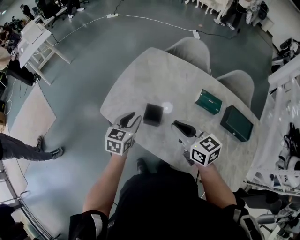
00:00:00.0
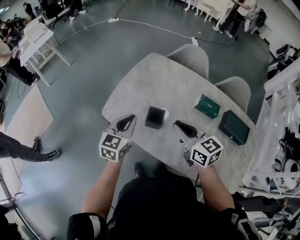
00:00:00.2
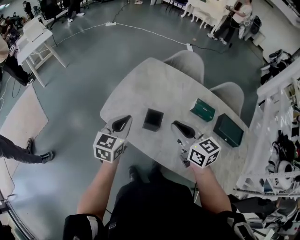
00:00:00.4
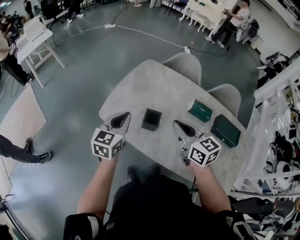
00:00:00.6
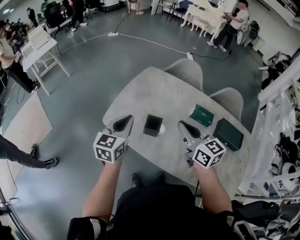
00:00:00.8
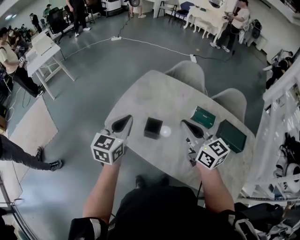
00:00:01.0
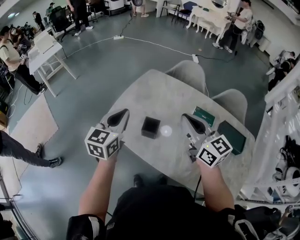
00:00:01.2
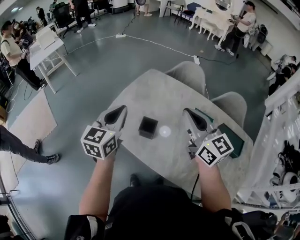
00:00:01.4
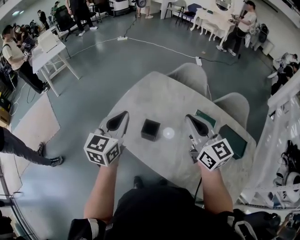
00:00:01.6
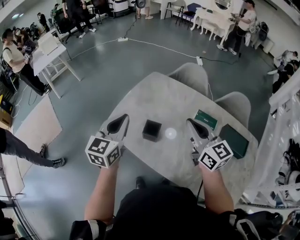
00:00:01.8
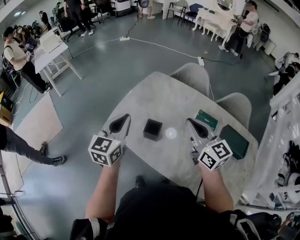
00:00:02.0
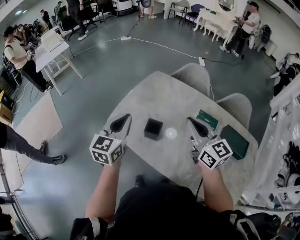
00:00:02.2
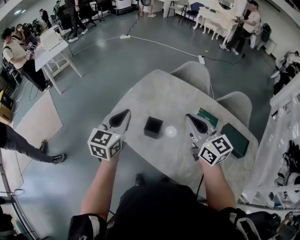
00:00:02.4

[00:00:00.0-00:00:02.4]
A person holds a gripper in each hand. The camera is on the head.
00:00:00.0 to 00:00:01.2: Both grippers travel together upward, some 15 cm. The right gripper rotates some 20 degrees, while the left gripper closes up.
00:00:01.2 to 00:00:02.4: The grippers stay close to where they were, moving slightly.

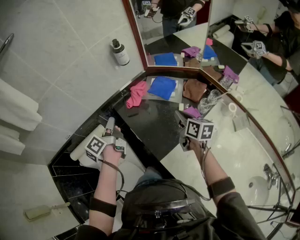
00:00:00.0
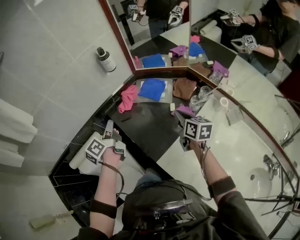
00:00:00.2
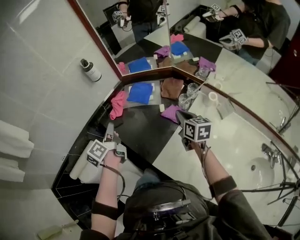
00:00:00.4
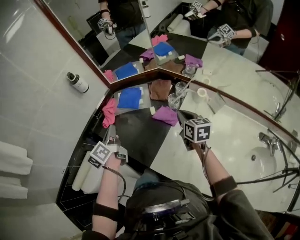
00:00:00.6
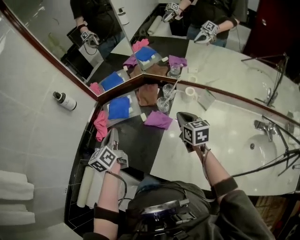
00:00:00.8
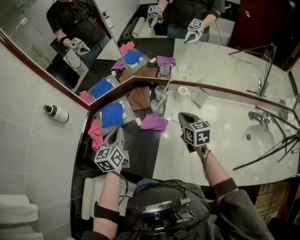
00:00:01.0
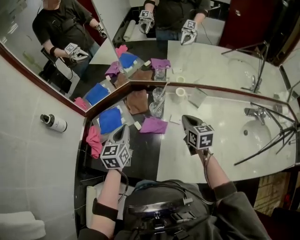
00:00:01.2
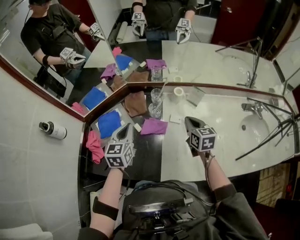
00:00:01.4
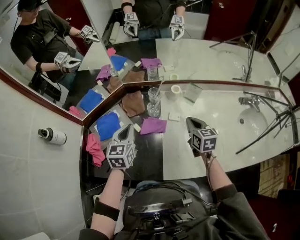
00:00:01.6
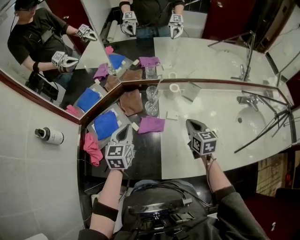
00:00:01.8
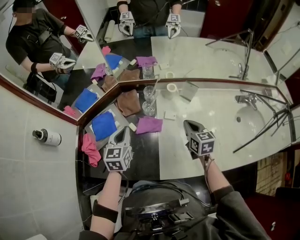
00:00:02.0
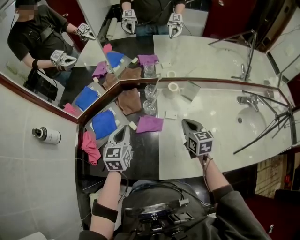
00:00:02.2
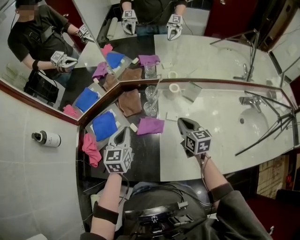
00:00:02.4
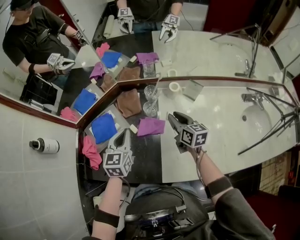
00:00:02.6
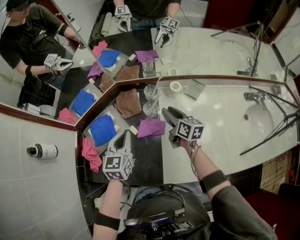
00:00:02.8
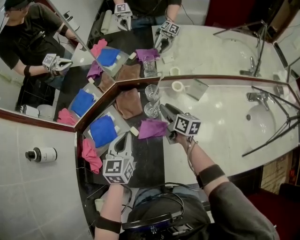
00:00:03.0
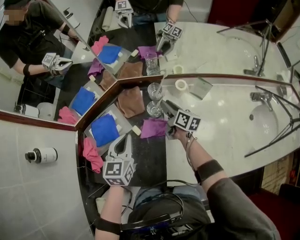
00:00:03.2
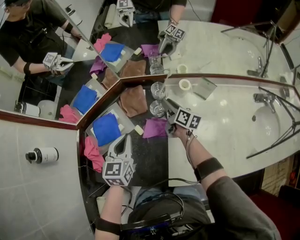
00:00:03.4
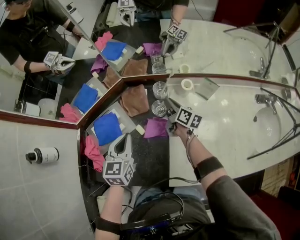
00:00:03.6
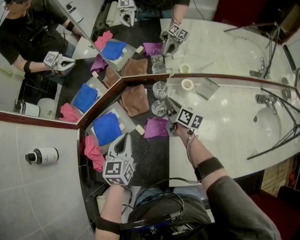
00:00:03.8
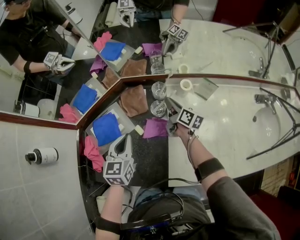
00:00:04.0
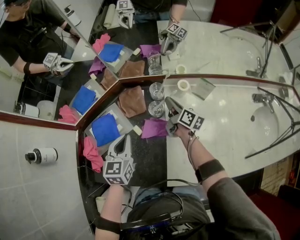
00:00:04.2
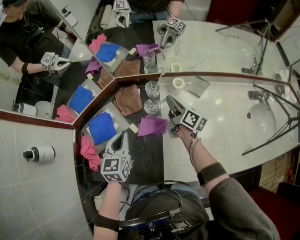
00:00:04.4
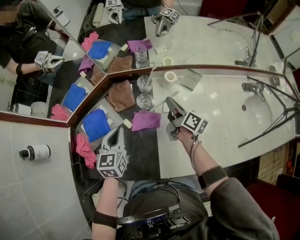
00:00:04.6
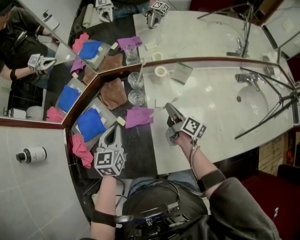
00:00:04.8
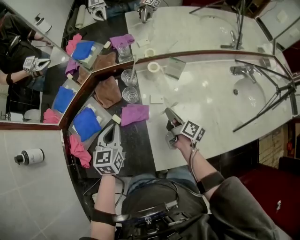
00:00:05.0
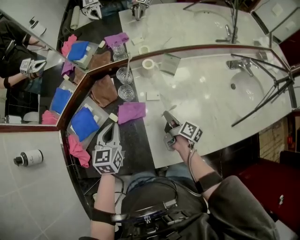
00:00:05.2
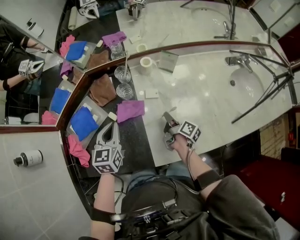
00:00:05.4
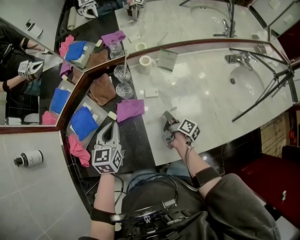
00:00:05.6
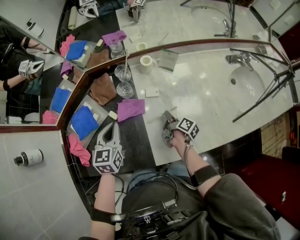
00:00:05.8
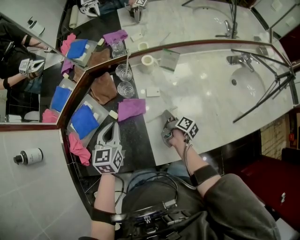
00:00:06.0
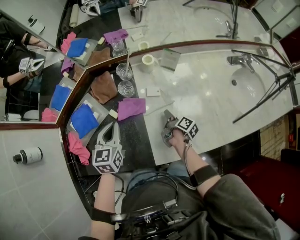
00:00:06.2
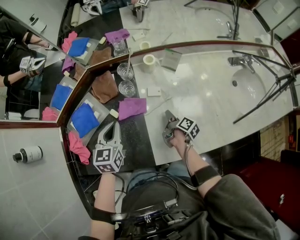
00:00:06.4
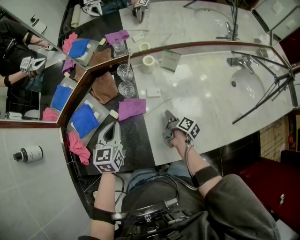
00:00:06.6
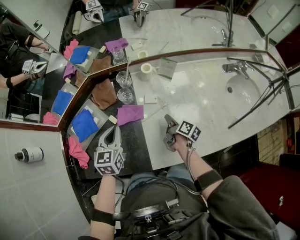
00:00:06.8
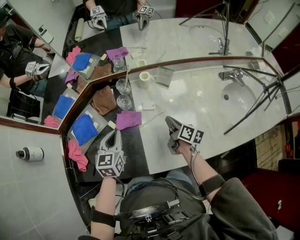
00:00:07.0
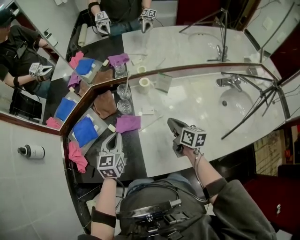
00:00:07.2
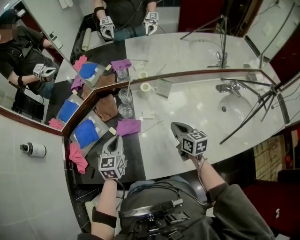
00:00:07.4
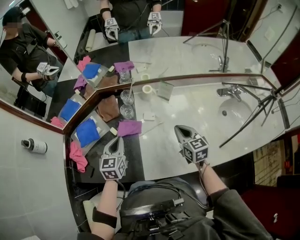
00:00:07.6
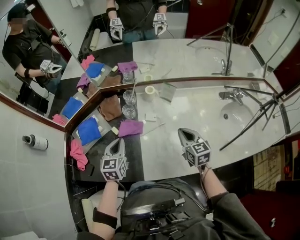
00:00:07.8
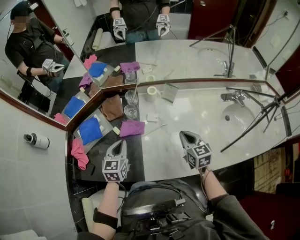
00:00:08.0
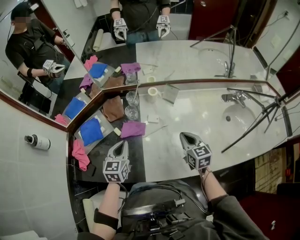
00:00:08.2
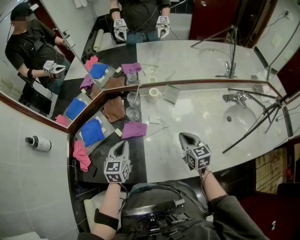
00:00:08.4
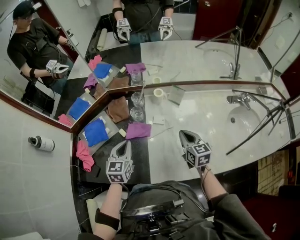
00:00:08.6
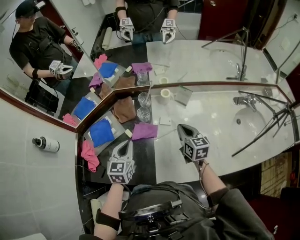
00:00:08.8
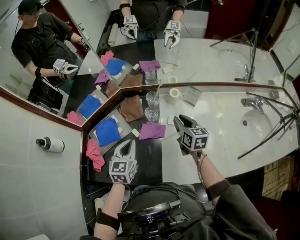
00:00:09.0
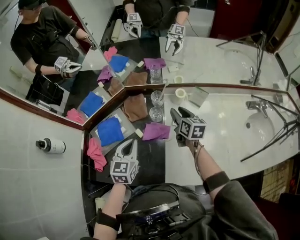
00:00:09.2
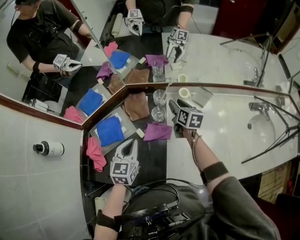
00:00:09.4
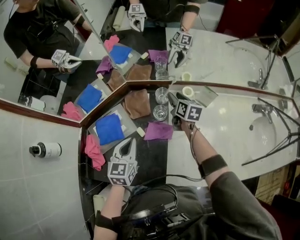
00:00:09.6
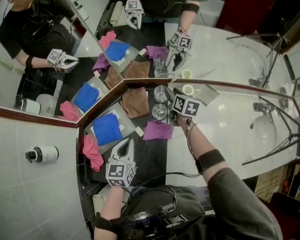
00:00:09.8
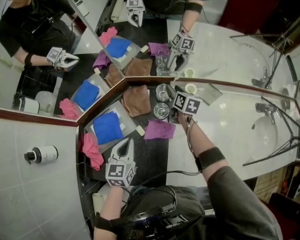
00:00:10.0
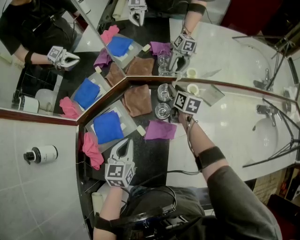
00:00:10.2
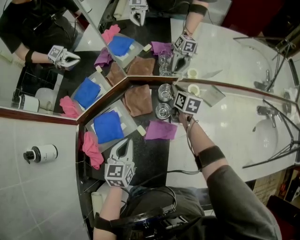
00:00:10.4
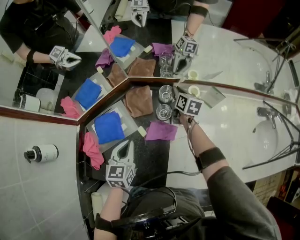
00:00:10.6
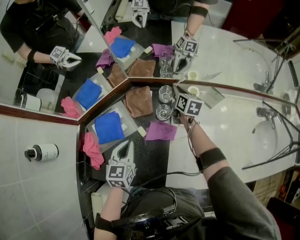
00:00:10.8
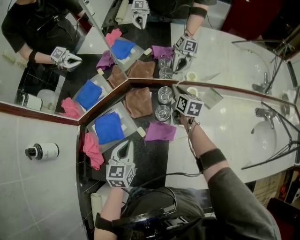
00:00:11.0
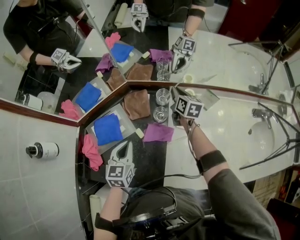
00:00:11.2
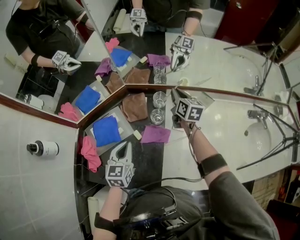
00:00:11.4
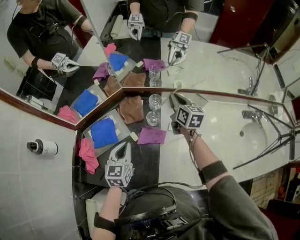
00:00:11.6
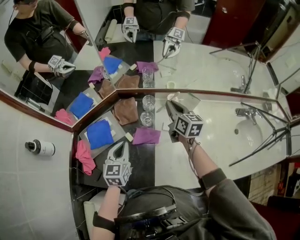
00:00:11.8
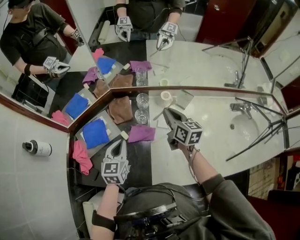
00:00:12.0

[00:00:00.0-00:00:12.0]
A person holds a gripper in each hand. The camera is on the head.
00:00:00.0 to 00:00:01.6: The left gripper changes place by some 35 cm, and changes its angle by approximately 90 degrees. Meanwhile the right gripper changes place by approximately 25 cm, and turns by approximately 50 degrees.
00:00:01.6 to 00:00:03.0: The right gripper travels forward, to the left and downward by about 20 cm, turns by some 30 degrees, and opens.
00:00:03.0 to 00:00:04.4: The right gripper closes its fingers.
00:00:04.4 to 00:00:06.0: The right gripper is displaced backward, downward and to the right by approximately 25 cm, and changes its angle by about 40 degrees; the left gripper goes some 5 cm to the right.
00:00:06.0 to 00:00:07.6: The right gripper moves upward, approximately 20 cm, rolls counterclockwise, seen from behind, by approximately 80 degrees, and closes its fingers. The left gripper shifts by approximately 5 cm.
00:00:07.6 to 00:00:09.0: The right gripper heads forward and to the left, covering about 15 cm, and opens up. Meanwhile the left gripper moves to the left, about 5 cm.
00:00:09.0 to 00:00:10.4: The left gripper shifts some 10 cm to the left and downward. The right gripper travels forward and downward by some 25 cm, and opens and closes again.
00:00:10.4 to 00:00:12.0: The right gripper heads backward and upward, covering some 25 cm. The left gripper is displaced to the right by approximately 5 cm.

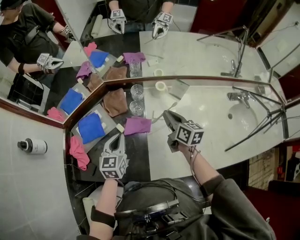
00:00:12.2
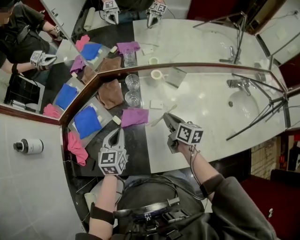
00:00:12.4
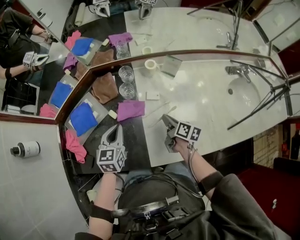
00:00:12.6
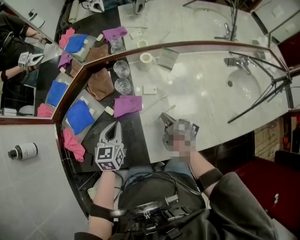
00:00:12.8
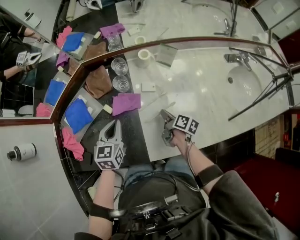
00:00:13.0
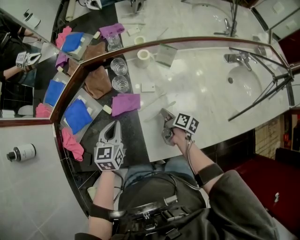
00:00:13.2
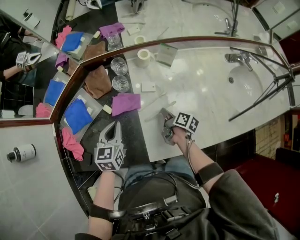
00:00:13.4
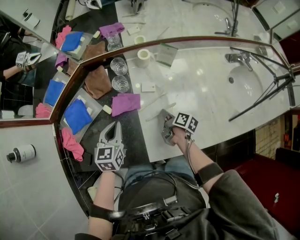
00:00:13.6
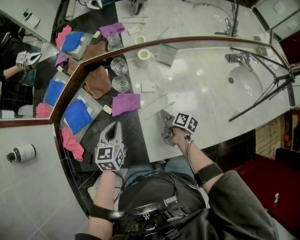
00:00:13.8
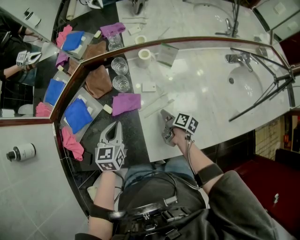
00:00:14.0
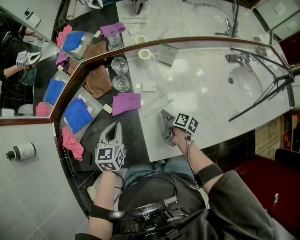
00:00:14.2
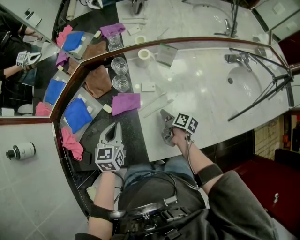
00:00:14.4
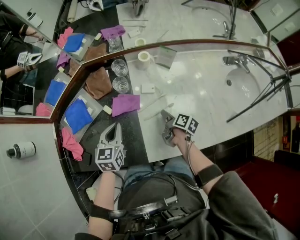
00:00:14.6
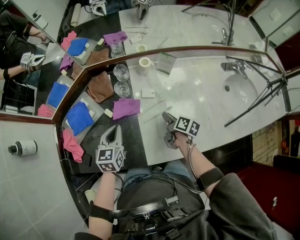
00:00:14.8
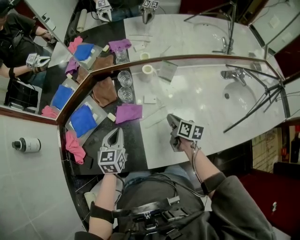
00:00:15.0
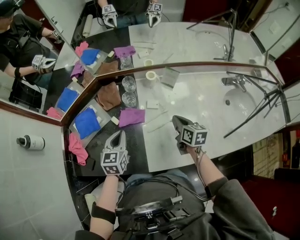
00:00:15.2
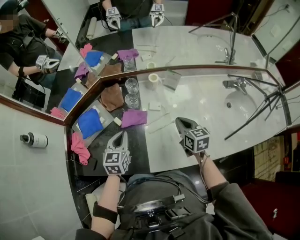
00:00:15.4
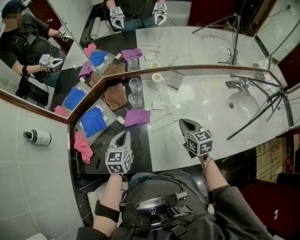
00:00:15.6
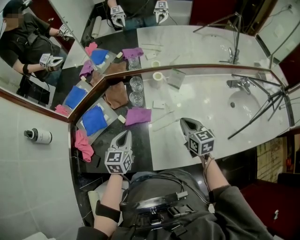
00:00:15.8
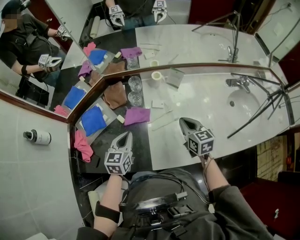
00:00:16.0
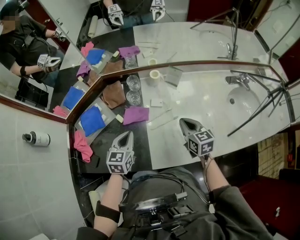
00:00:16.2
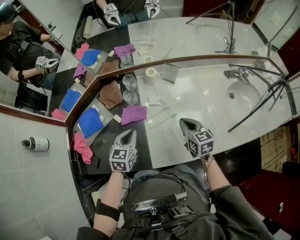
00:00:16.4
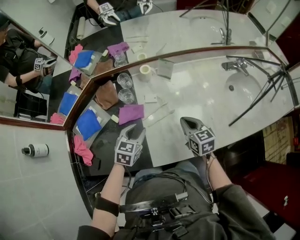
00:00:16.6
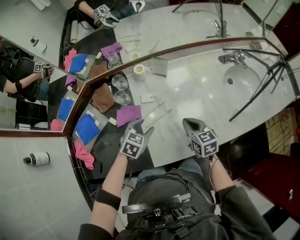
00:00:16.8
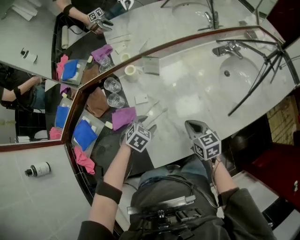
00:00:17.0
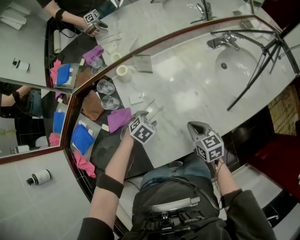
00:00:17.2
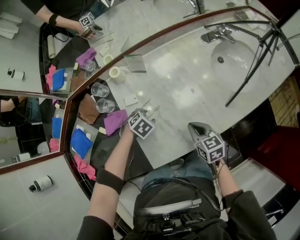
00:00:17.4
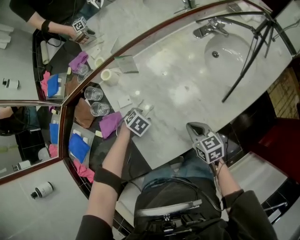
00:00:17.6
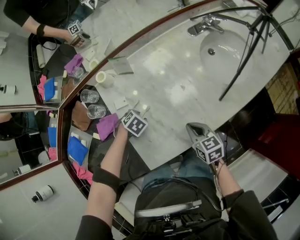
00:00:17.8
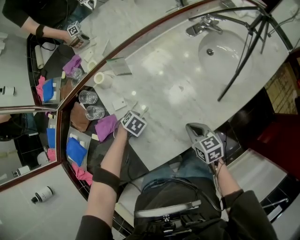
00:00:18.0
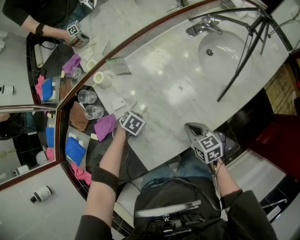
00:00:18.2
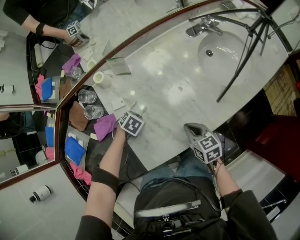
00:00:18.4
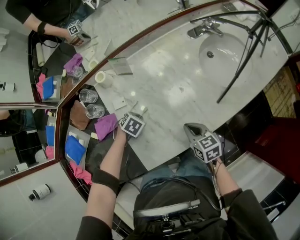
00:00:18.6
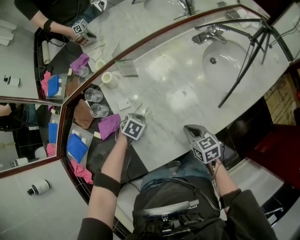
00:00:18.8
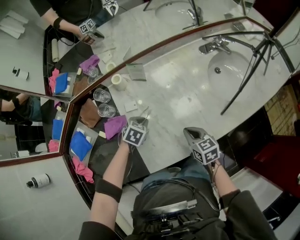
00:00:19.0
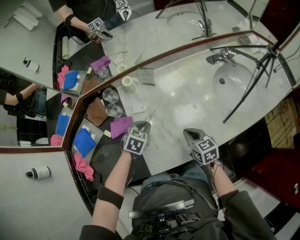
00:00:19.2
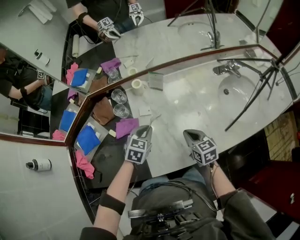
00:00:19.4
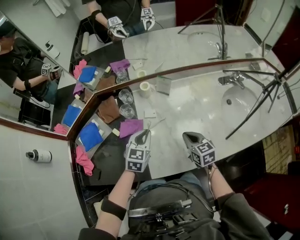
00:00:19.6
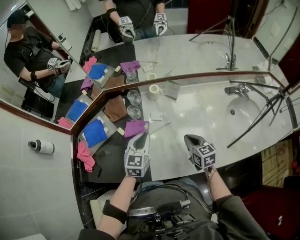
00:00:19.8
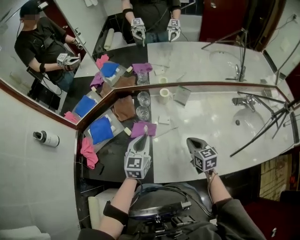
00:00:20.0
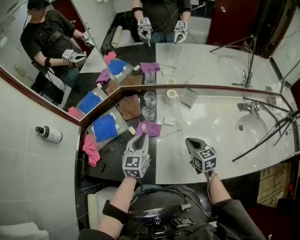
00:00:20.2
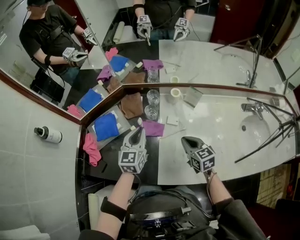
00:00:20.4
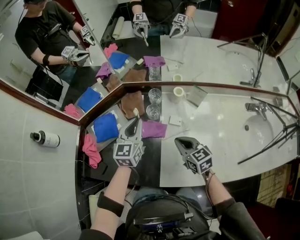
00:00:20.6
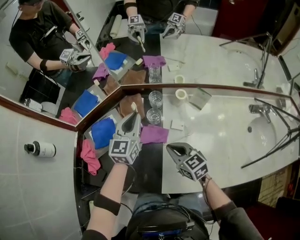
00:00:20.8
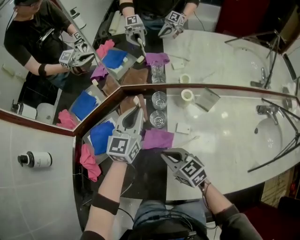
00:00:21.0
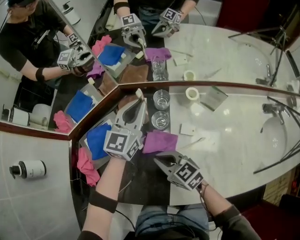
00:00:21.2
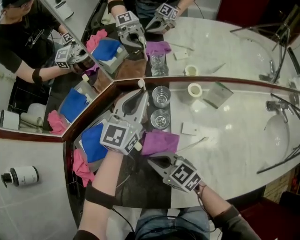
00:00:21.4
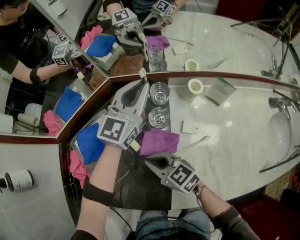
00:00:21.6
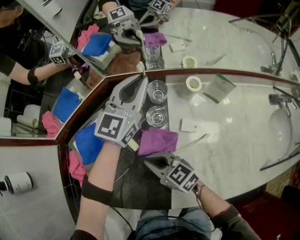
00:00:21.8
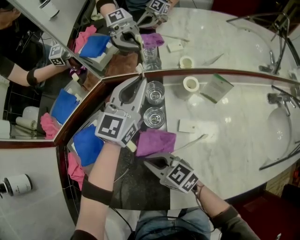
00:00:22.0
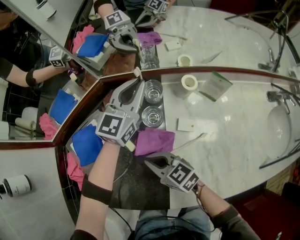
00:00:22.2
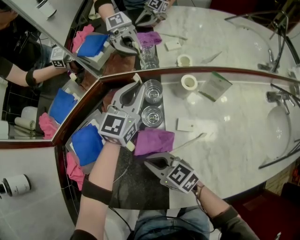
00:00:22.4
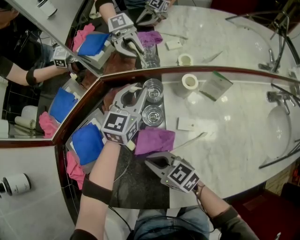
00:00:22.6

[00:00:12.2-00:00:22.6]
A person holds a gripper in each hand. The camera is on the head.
00:00:12.2 to 00:00:13.6: The left gripper is displaced downward by some 5 cm, while the right gripper travels downward and backward by roughly 25 cm, and rolls clockwise, seen from behind, by some 40 degrees.
00:00:13.6 to 00:00:15.2: The right gripper goes about 15 cm upward, and rotates around the line of its fingers by about 40 degrees, counterclockwise from behind.
00:00:15.2 to 00:00:16.6: The left gripper heads to the right, covering about 10 cm, changes its angle by about 30 degrees, and opens. The right gripper shifts roughly 5 cm backward.
00:00:16.6 to 00:00:18.2: The left gripper goes some 20 cm downward, angles its fingers downward, by about 30 degrees, and closes up; the right gripper changes place by about 15 cm.
00:00:18.2 to 00:00:19.6: The right gripper ends up approximately 15 cm from where it was. Meanwhile the left gripper goes some 20 cm upward, and tips its fingers upward by some 40 degrees.
00:00:19.6 to 00:00:21.2: The left gripper shifts by about 30 cm, and swivels about 30 degrees, while the right gripper ends up roughly 35 cm from where it was, and turns by roughly 40 degrees.
00:00:21.2 to 00:00:22.6: The left gripper shifts roughly 10 cm downward and to the right. The right gripper heads downward, covering some 5 cm.
